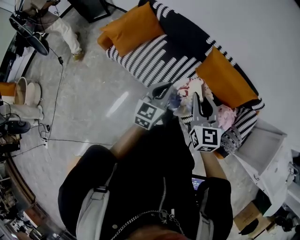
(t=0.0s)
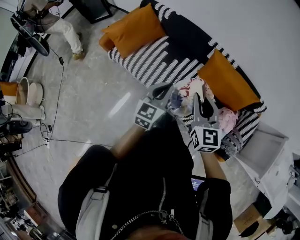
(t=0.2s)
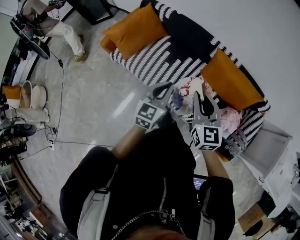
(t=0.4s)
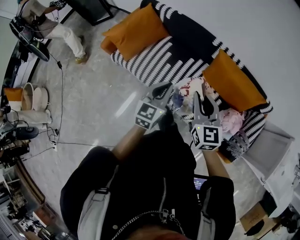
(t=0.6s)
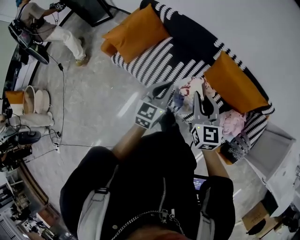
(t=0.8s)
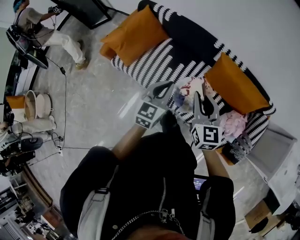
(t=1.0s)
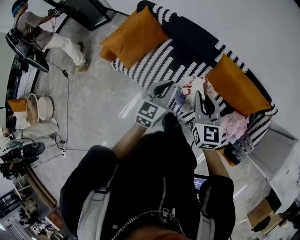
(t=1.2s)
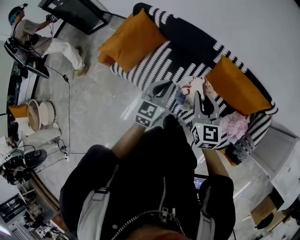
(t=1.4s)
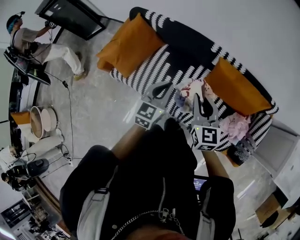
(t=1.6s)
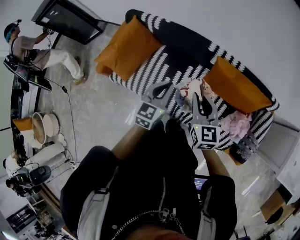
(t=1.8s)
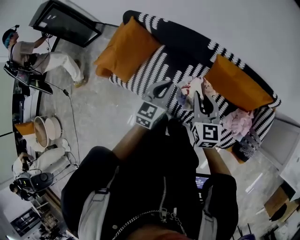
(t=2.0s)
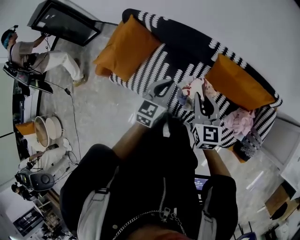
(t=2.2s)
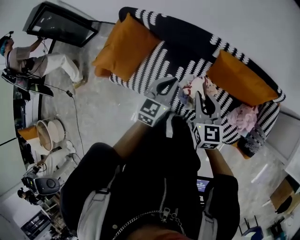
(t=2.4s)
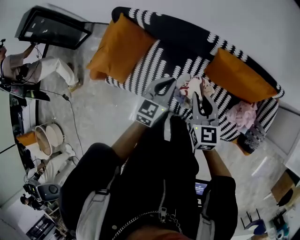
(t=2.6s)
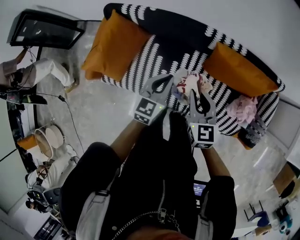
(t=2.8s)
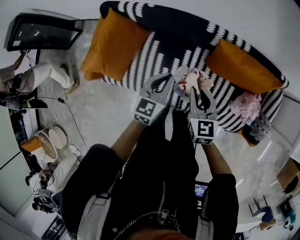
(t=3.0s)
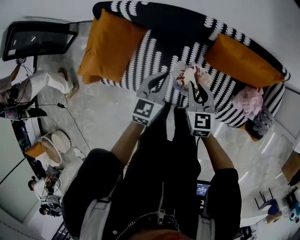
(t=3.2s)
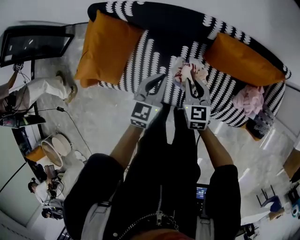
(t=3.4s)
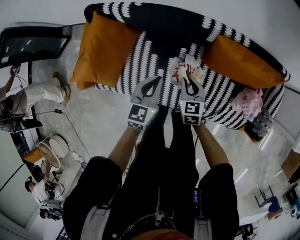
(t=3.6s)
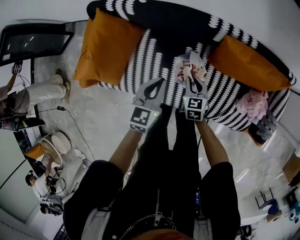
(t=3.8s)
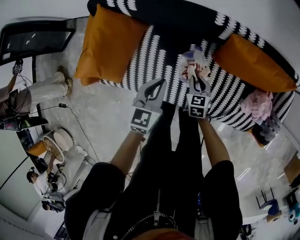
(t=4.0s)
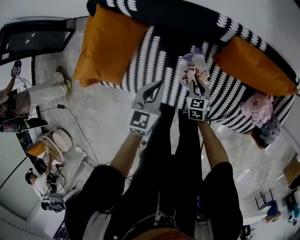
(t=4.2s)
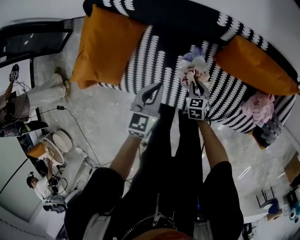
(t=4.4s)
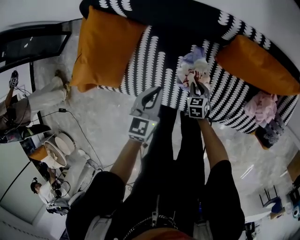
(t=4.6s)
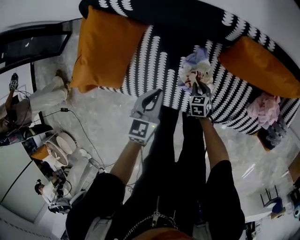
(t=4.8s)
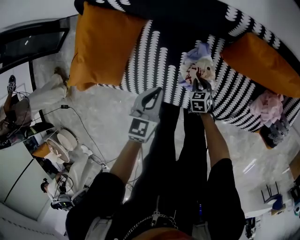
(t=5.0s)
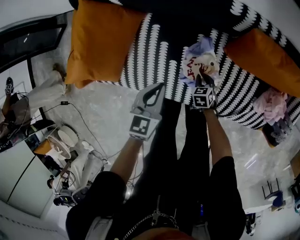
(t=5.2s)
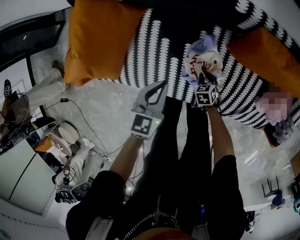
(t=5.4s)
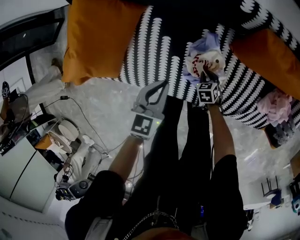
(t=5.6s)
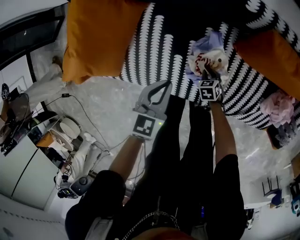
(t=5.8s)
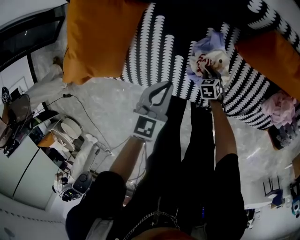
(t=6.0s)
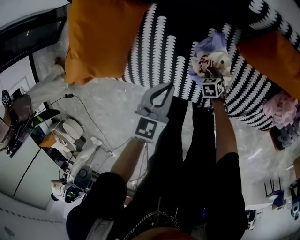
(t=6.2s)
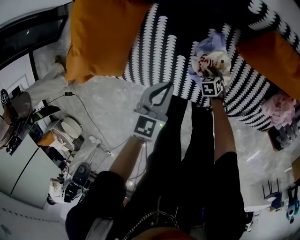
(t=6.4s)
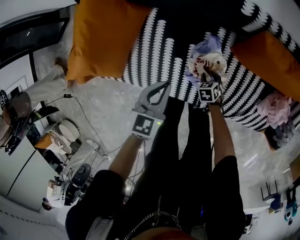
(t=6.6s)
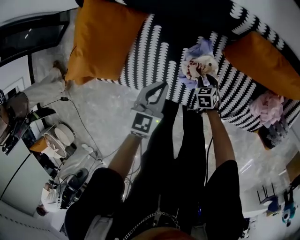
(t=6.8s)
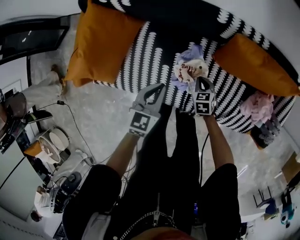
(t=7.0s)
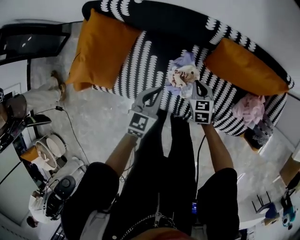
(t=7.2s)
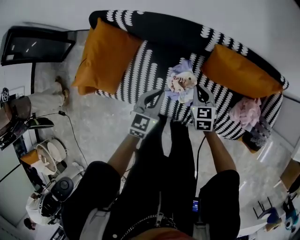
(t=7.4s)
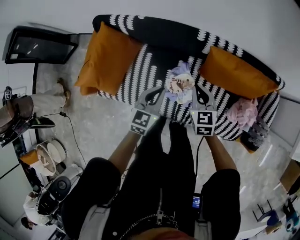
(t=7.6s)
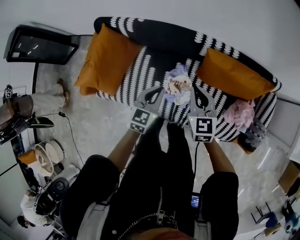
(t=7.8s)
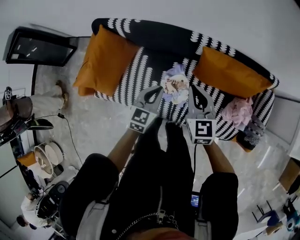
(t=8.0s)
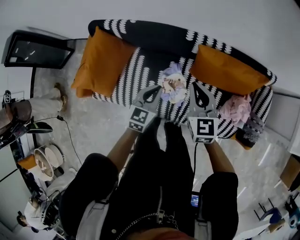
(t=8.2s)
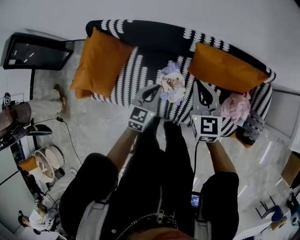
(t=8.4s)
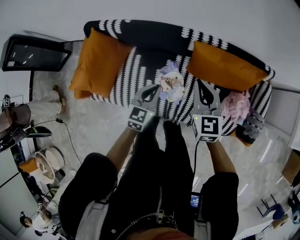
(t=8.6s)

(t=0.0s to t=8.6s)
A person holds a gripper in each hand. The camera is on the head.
t=0.0s - t=1.4s: The grippers both shift forward by roughly 15 cm.
t=1.4s - t=2.8s: The right gripper is displaced downward and forward by some 10 cm, while the left gripper is displaced forward and downward by about 10 cm.
t=2.8s - t=4.4s: The right gripper is displaced downward by about 35 cm, and changes its angle by some 30 degrees. The left gripper heads downward and to the left, covering some 15 cm.
t=4.4s - t=5.8s: The right gripper moves downward, some 20 cm; the left gripper is displaced downward by roughly 10 cm.
t=5.8s - t=7.2s: The right gripper travels upward by roughly 25 cm, turns by about 30 degrees, and opens, then closes once more; the left gripper moves upward, some 10 cm.
t=7.2s - t=8.6s: The left gripper is displaced to the right and upward by some 10 cm. Meanwhile the right gripper is displaced upward by approximately 25 cm, and swivels about 30 degrees.

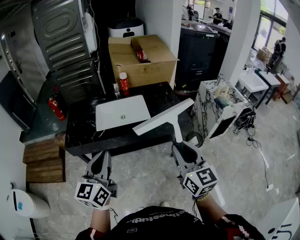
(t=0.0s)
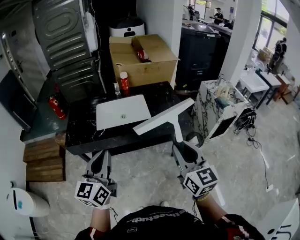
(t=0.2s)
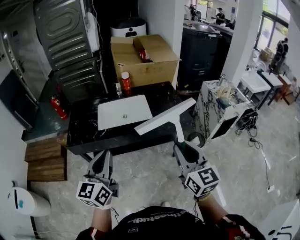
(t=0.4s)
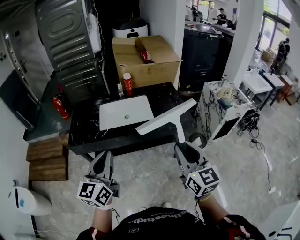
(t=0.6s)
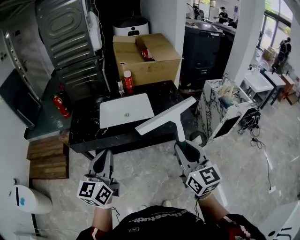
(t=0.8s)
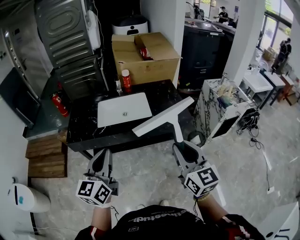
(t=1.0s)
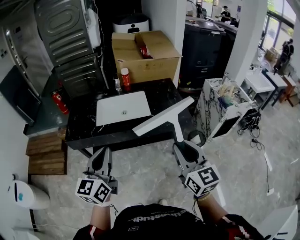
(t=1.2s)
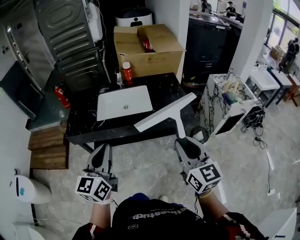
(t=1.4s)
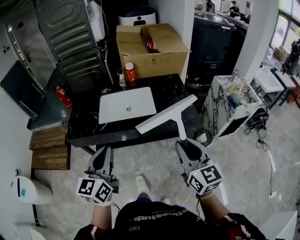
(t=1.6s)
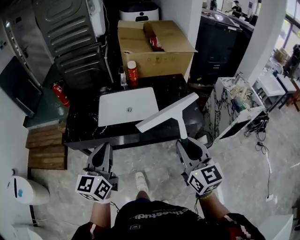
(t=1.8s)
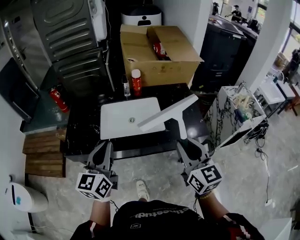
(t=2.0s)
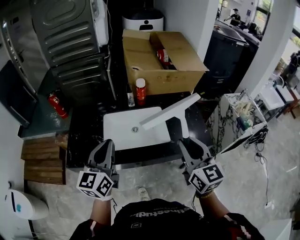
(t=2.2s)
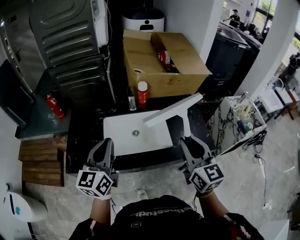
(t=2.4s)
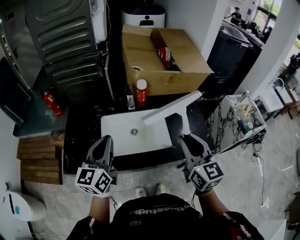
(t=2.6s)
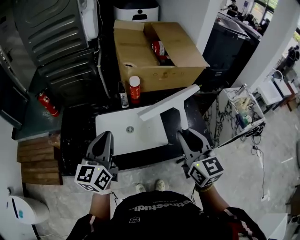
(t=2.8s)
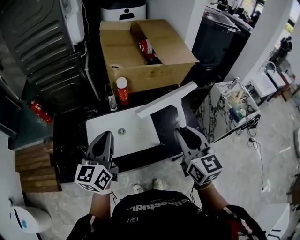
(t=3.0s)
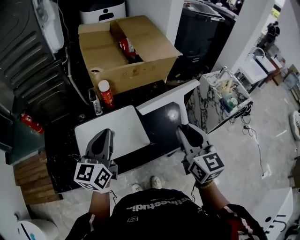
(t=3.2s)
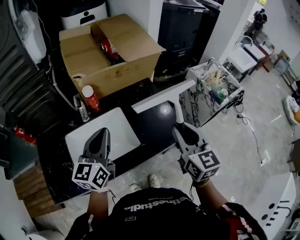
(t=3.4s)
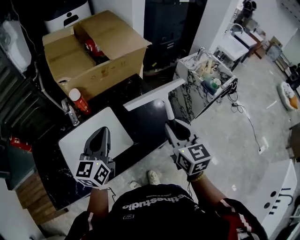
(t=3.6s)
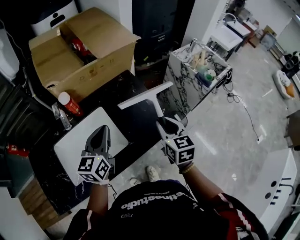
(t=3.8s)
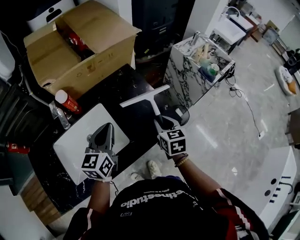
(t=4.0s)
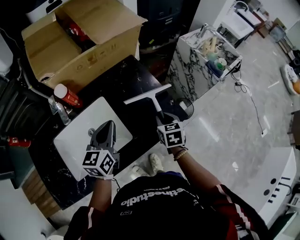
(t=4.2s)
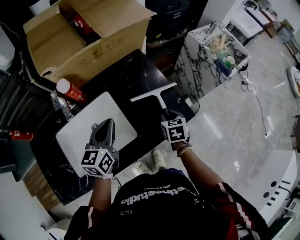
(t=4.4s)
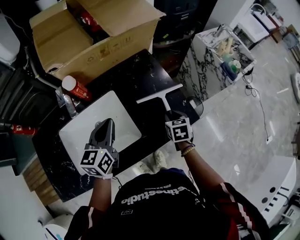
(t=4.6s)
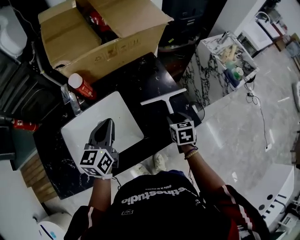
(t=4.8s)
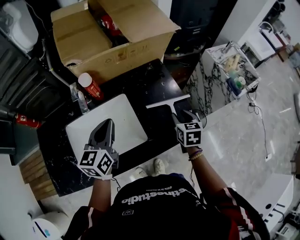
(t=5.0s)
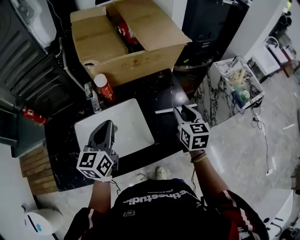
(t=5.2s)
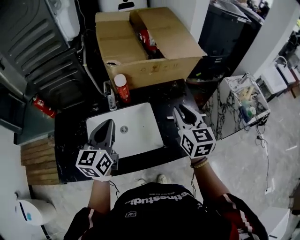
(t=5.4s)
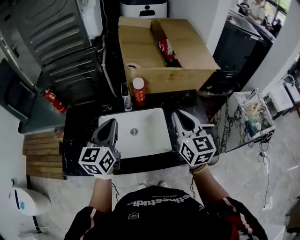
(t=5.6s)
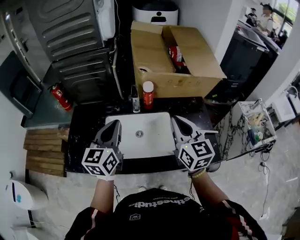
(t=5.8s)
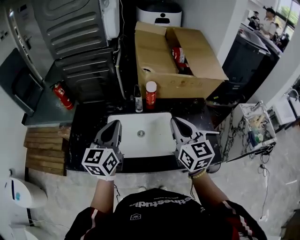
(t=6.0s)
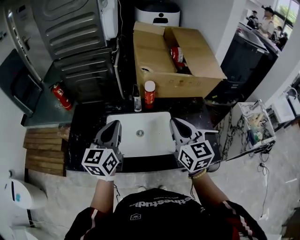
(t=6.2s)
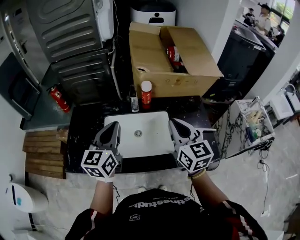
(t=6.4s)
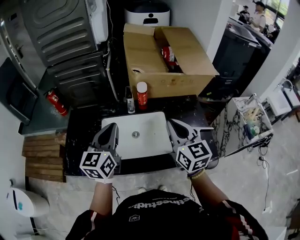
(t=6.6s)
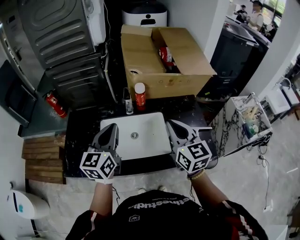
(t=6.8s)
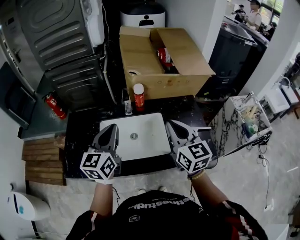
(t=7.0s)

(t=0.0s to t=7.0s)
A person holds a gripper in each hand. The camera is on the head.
t=0.0s - t=1.4s: The right gripper ends up roughly 5 cm from where it was.
t=1.4s - t=2.8s: Both grippers move forward, roughly 35 cm.
t=2.8s - t=4.2s: The left gripper shifts by approximately 35 cm, and rotates about 30 degrees; the right gripper moves downward, roughly 30 cm, and angles its fingers downward, by approximately 40 degrees.
t=4.2s - t=5.6s: The left gripper ends up roughly 30 cm from where it was, and changes its angle by approximately 30 degrees; the right gripper goes approximately 25 cm upward, and angles its fingers upward, by some 40 degrees.
t=5.6s - t=7.0s: The right gripper moves about 5 cm.

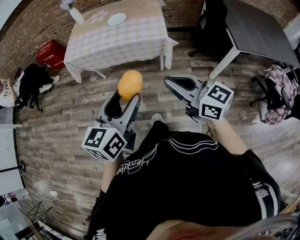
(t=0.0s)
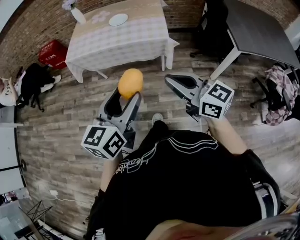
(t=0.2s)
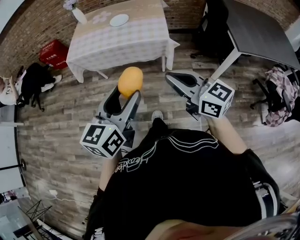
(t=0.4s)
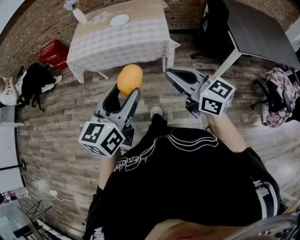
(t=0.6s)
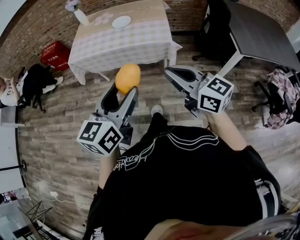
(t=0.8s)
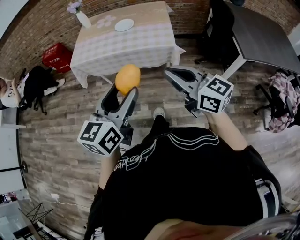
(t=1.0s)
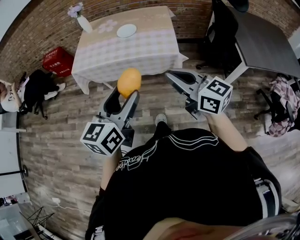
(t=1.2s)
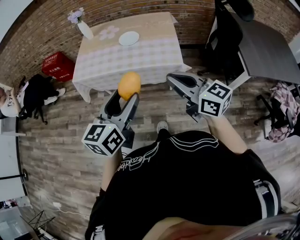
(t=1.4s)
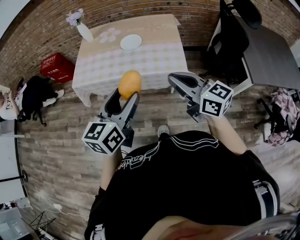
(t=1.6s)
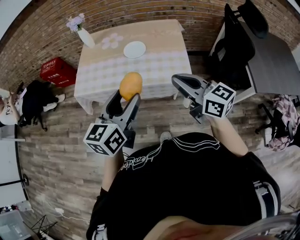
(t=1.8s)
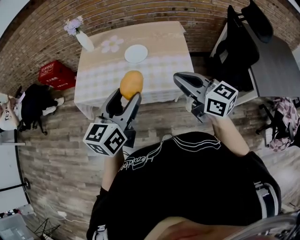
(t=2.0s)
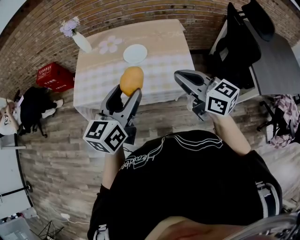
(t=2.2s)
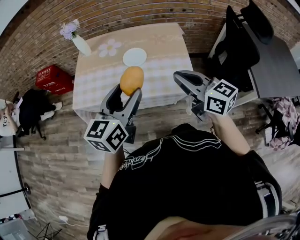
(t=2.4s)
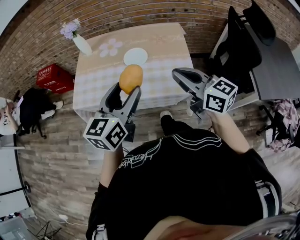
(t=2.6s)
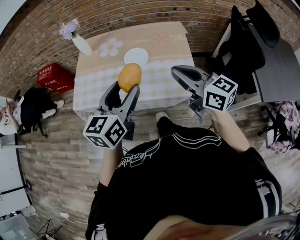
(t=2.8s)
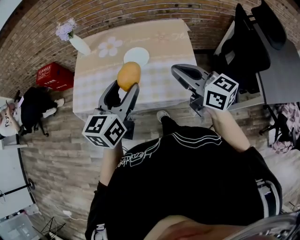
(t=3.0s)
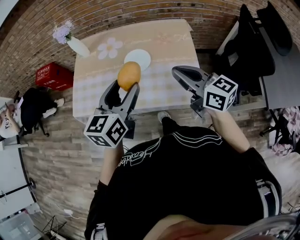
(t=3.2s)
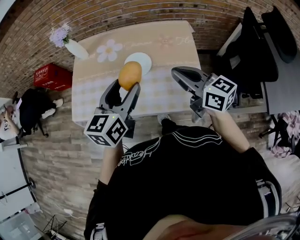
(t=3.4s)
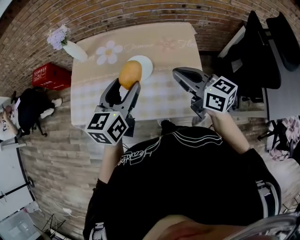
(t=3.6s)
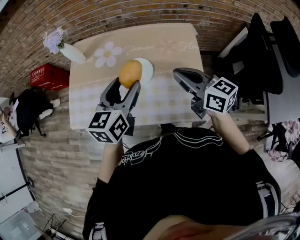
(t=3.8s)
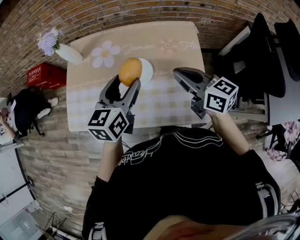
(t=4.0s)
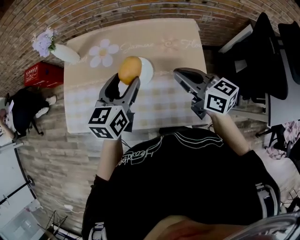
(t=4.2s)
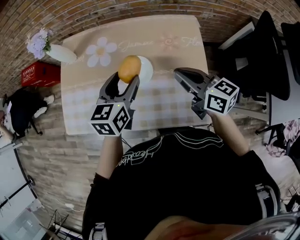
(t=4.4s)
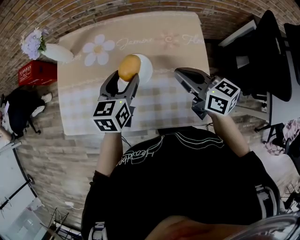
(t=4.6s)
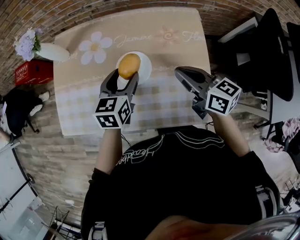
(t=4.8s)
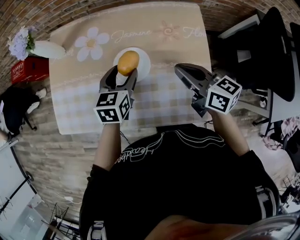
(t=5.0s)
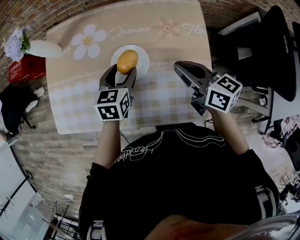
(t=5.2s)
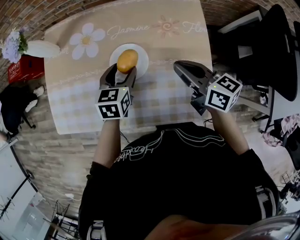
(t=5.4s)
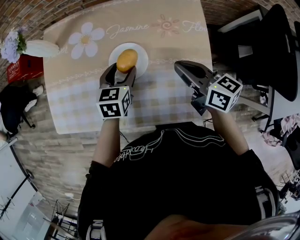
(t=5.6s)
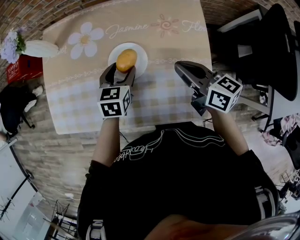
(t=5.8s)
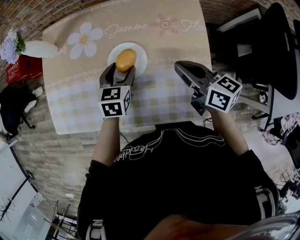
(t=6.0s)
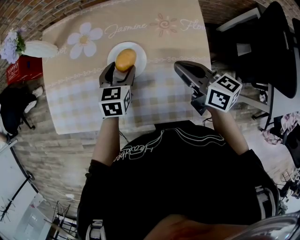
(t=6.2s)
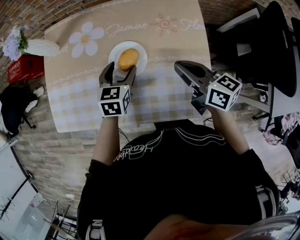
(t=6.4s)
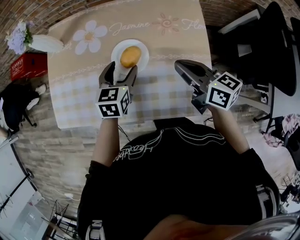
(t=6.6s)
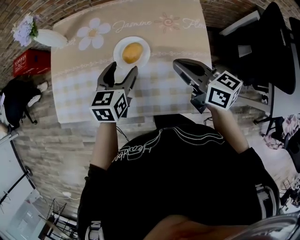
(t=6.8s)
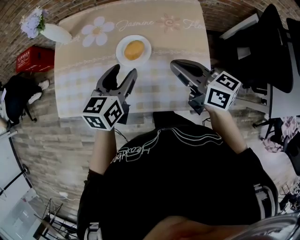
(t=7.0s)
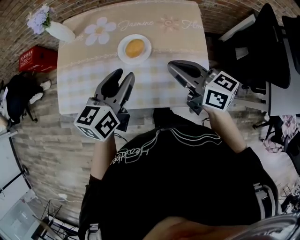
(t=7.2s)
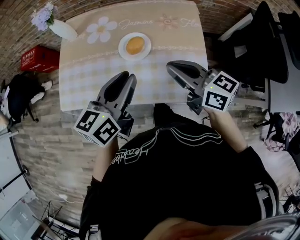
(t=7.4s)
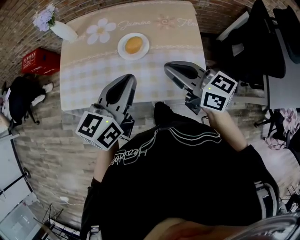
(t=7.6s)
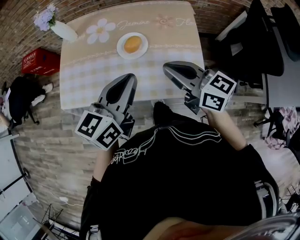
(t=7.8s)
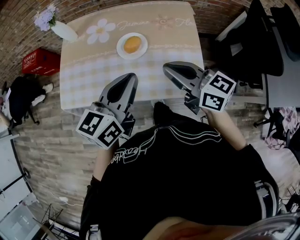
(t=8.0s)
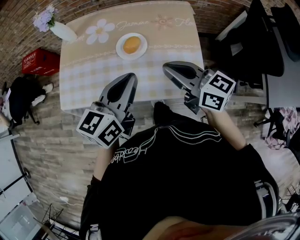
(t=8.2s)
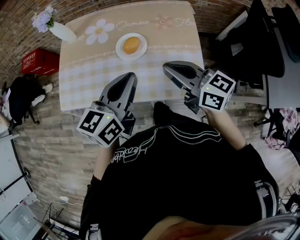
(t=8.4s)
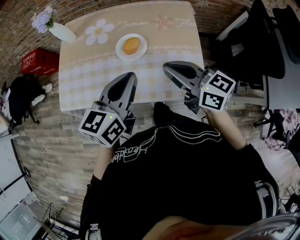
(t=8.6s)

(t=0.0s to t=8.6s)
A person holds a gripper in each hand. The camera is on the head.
t=0.0s - t=1.4s: The two grippers go some 20 cm forward.
t=1.4s - t=2.8s: Both grippers travel together forward, roughly 25 cm.
t=2.8s - t=4.4s: Both grippers move forward and downward, approximately 30 cm.
t=4.4s - t=5.8s: The left gripper is displaced downward by approximately 15 cm, while the right gripper heads downward, covering roughly 5 cm.
t=5.8s - t=7.2s: The right gripper moves upward, backward and to the left, some 15 cm. The left gripper moves upward and backward, roughly 20 cm, and rotates about 30 degrees.
t=7.2s - t=8.6s: The right gripper changes place by roughly 5 cm; the left gripper heads backward, covering about 5 cm, and closes its fingers.
